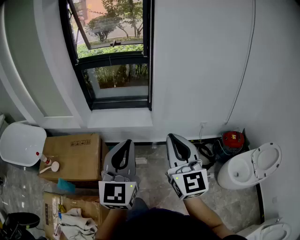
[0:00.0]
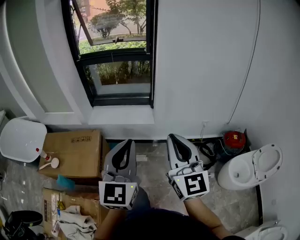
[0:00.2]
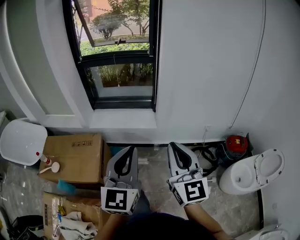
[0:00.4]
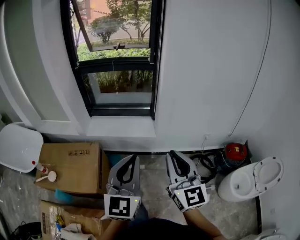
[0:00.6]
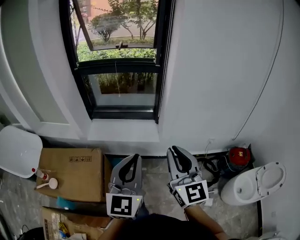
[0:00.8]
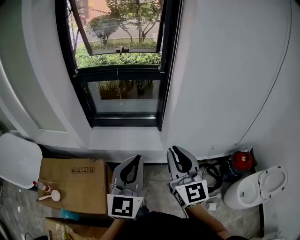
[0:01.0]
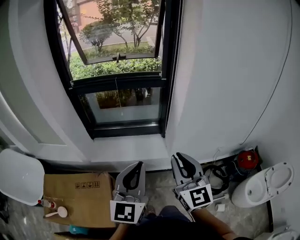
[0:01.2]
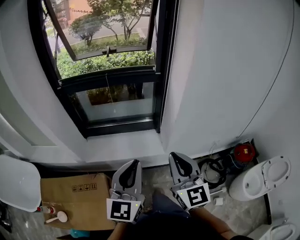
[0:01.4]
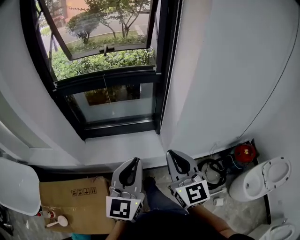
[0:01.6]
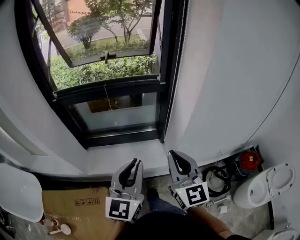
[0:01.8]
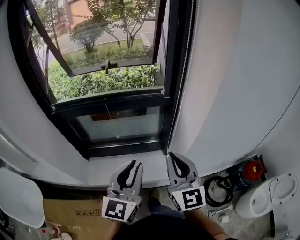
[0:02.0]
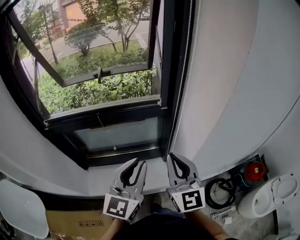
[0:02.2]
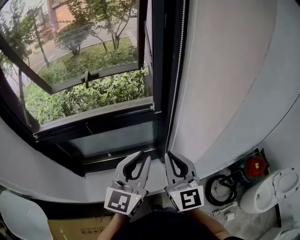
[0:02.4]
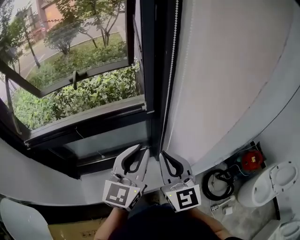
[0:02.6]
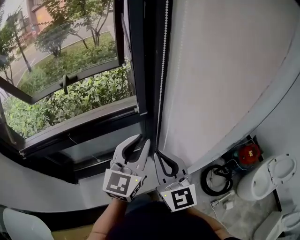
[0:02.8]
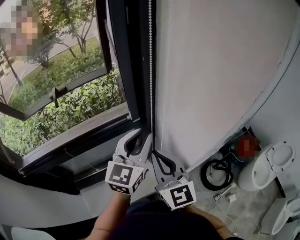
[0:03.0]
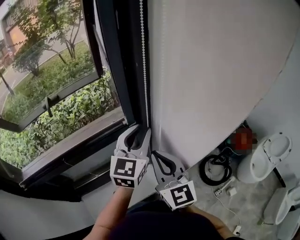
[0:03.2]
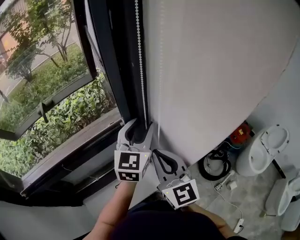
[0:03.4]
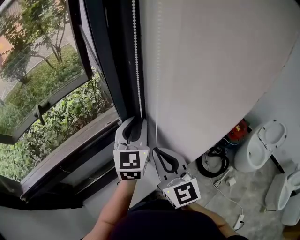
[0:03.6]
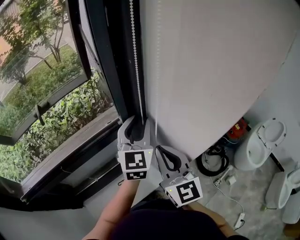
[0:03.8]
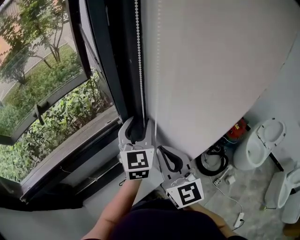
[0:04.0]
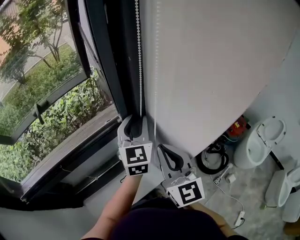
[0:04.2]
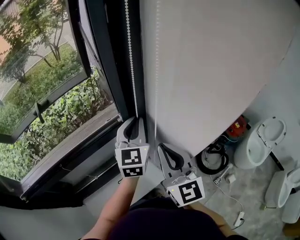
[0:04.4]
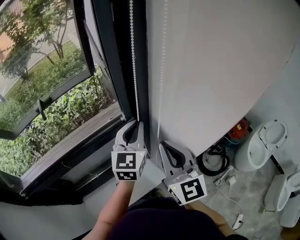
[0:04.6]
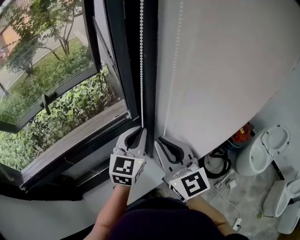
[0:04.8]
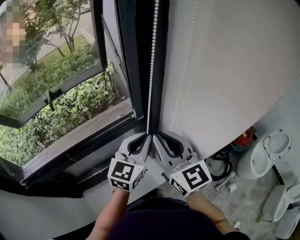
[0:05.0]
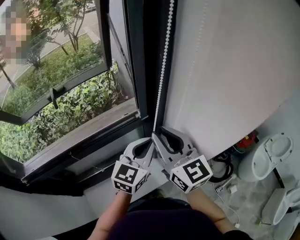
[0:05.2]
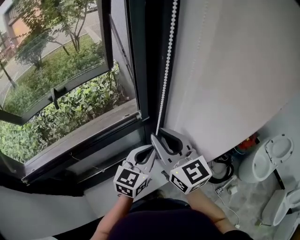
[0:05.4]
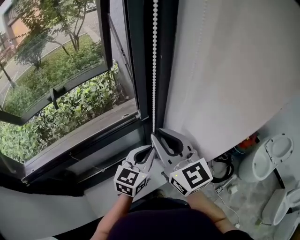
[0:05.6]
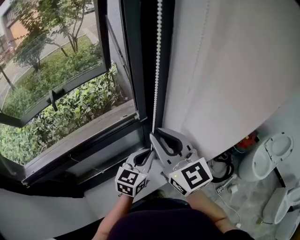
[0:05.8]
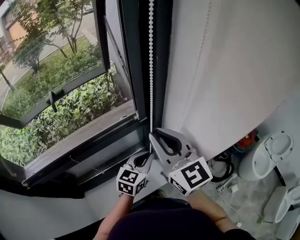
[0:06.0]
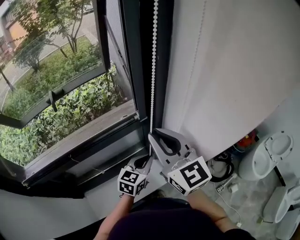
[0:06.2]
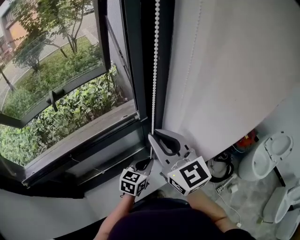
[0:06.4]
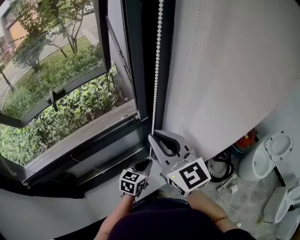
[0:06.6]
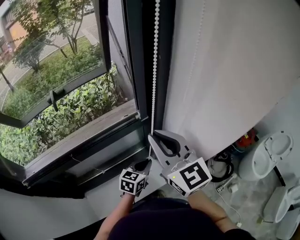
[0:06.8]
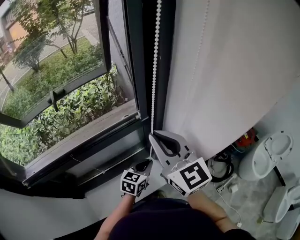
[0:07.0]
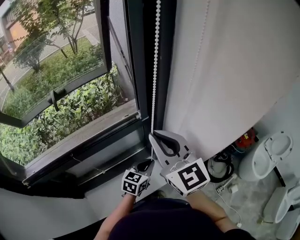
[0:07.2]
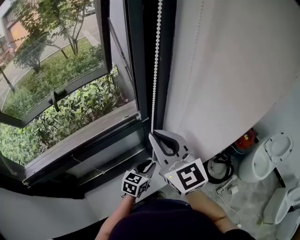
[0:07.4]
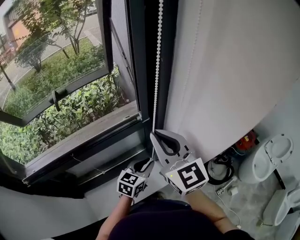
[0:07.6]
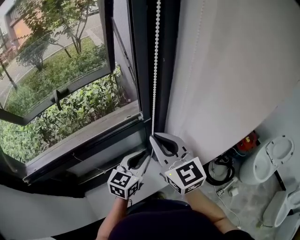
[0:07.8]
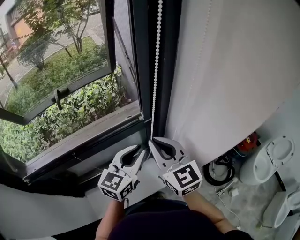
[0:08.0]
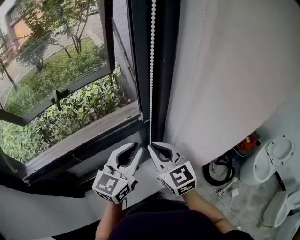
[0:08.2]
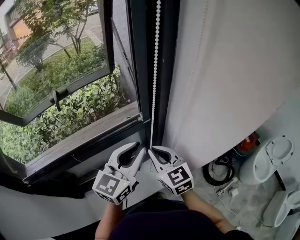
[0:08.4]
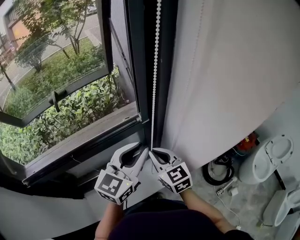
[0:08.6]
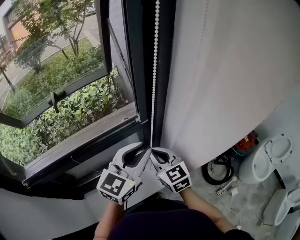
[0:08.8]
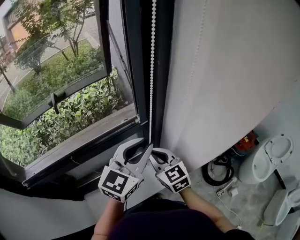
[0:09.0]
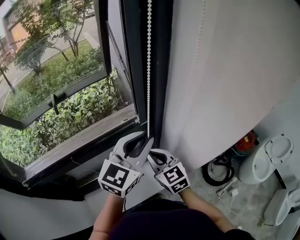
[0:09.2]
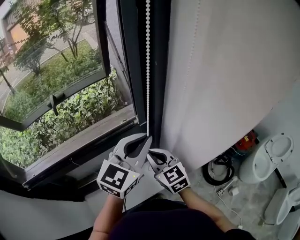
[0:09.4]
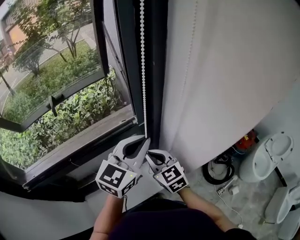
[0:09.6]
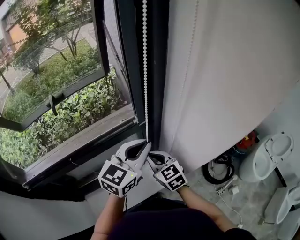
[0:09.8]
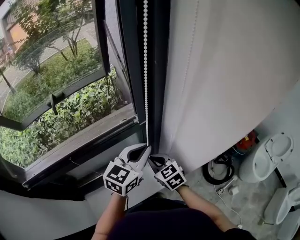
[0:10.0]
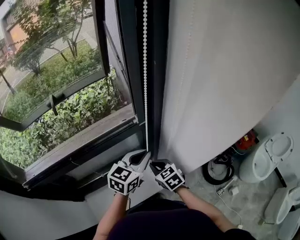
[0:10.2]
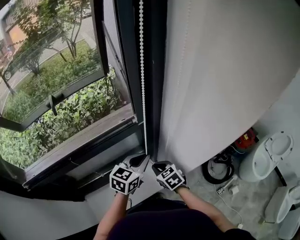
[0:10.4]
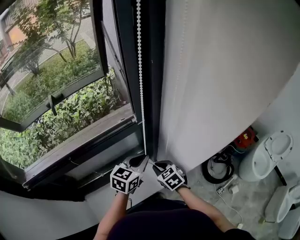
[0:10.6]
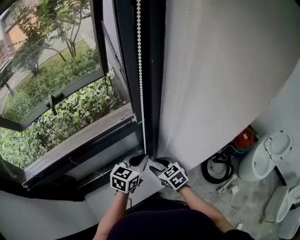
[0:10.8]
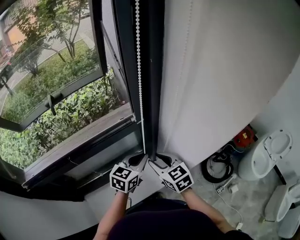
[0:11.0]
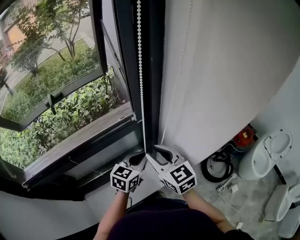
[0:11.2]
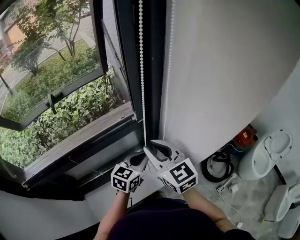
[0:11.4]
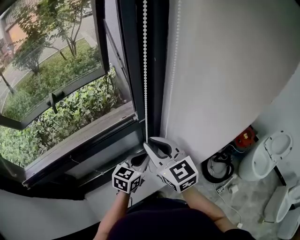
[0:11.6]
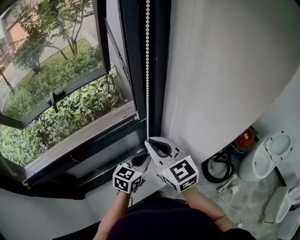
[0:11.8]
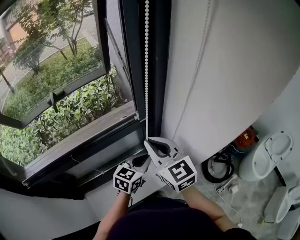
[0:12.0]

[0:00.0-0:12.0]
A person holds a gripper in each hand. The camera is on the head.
0:00.0 to 0:01.6: The pair of grippers is taken forward, approximately 40 cm.
0:01.6 to 0:03.0: The grippers both shift forward by roughly 40 cm. The left gripper rotates some 30 degrees.
0:03.0 to 0:04.4: The left gripper shifts some 5 cm forward, and opens, then closes once more.
0:04.4 to 0:06.0: The right gripper travels to the left by some 5 cm. Meanwhile the left gripper moves downward and backward, roughly 15 cm, and swivels approximately 30 degrees.
0:07.6 to 0:09.0: The left gripper shifts some 20 cm upward, and turns by about 30 degrees, while the right gripper is displaced downward by about 15 cm.
0:09.0 to 0:10.4: The grippers both shift downward by approximately 15 cm. The right gripper turns by some 30 degrees. Meanwhile the left gripper changes its angle by about 20 degrees.
0:10.4 to 0:12.0: The right gripper heads upward, covering some 25 cm, tips its fingers upward by approximately 30 degrees, and opens, then closes once more.

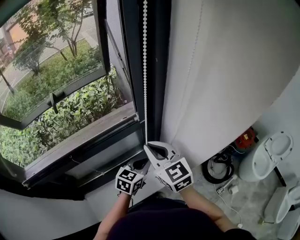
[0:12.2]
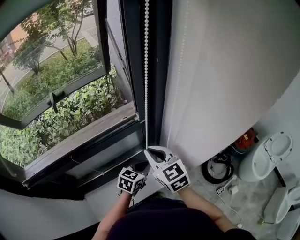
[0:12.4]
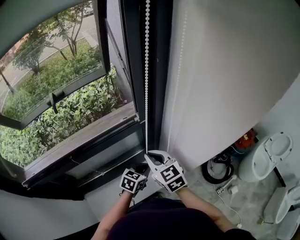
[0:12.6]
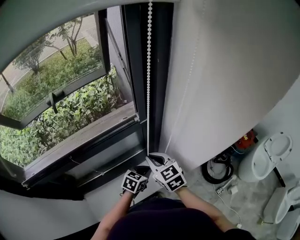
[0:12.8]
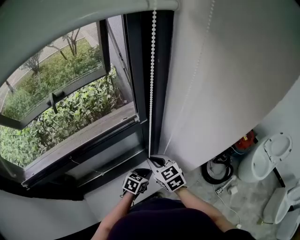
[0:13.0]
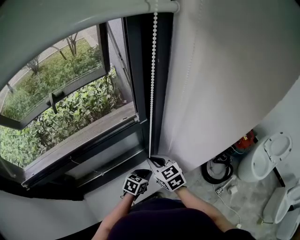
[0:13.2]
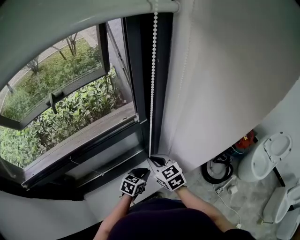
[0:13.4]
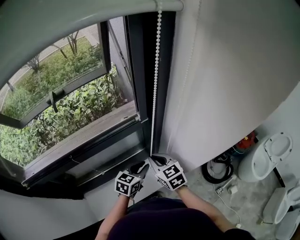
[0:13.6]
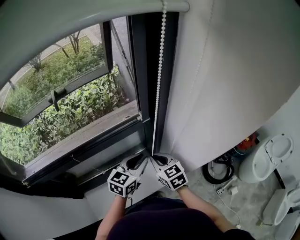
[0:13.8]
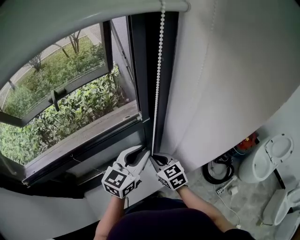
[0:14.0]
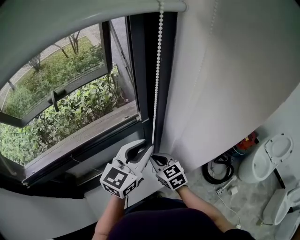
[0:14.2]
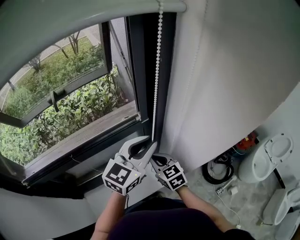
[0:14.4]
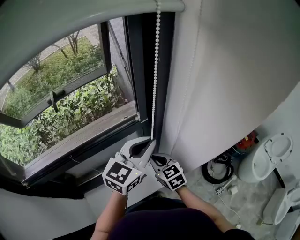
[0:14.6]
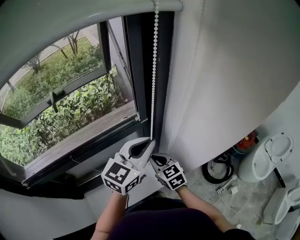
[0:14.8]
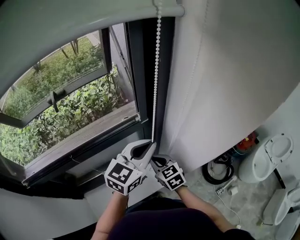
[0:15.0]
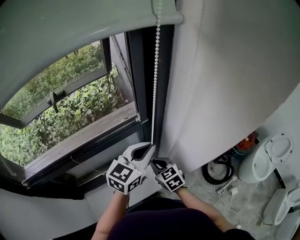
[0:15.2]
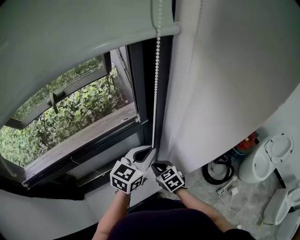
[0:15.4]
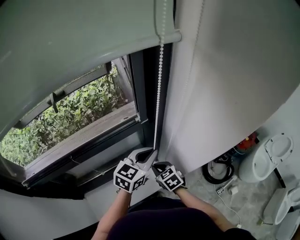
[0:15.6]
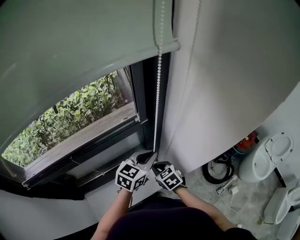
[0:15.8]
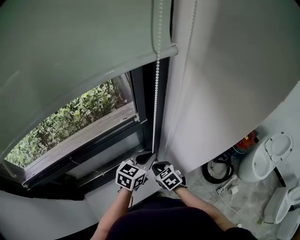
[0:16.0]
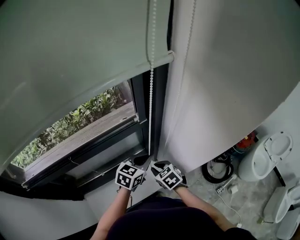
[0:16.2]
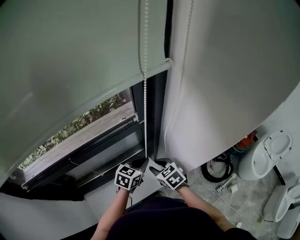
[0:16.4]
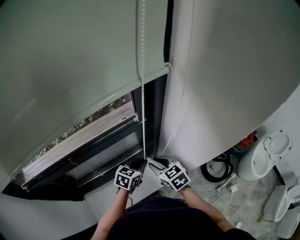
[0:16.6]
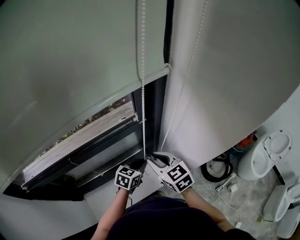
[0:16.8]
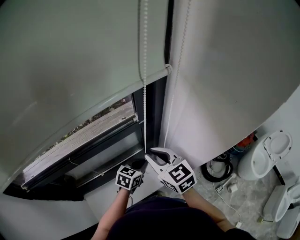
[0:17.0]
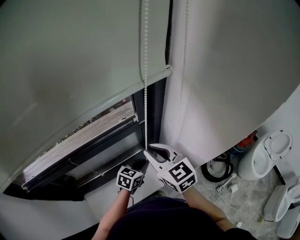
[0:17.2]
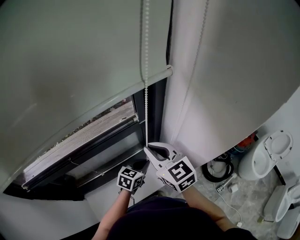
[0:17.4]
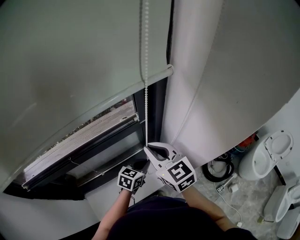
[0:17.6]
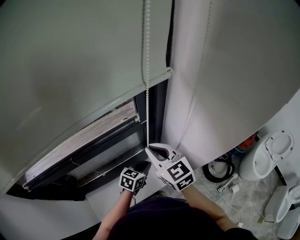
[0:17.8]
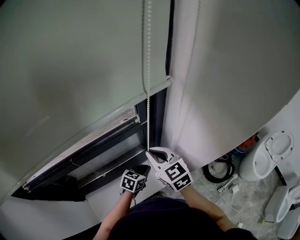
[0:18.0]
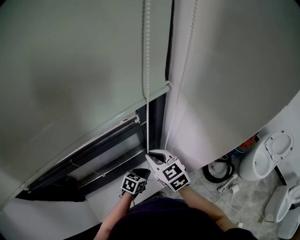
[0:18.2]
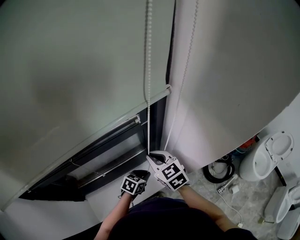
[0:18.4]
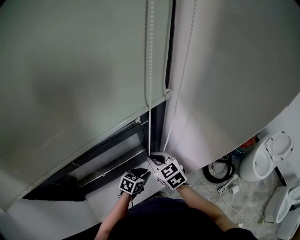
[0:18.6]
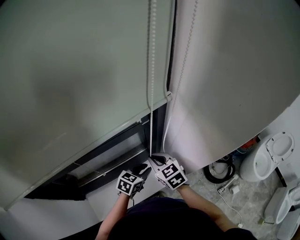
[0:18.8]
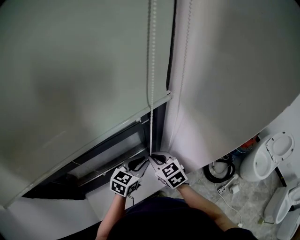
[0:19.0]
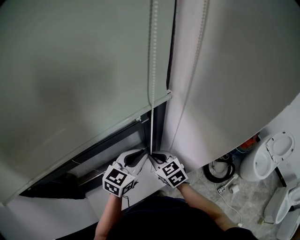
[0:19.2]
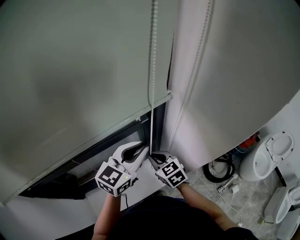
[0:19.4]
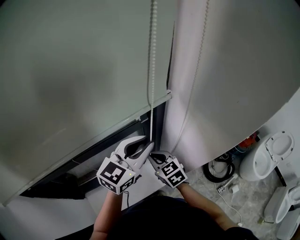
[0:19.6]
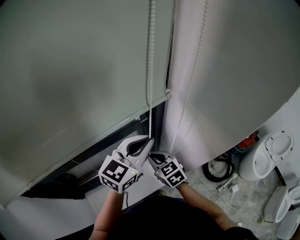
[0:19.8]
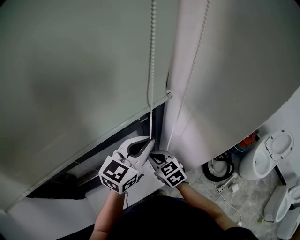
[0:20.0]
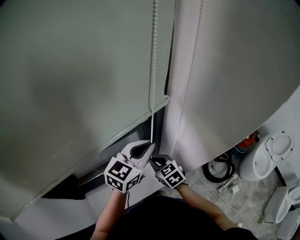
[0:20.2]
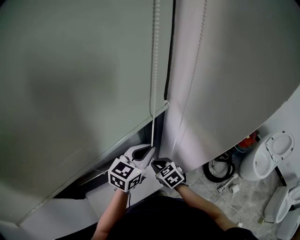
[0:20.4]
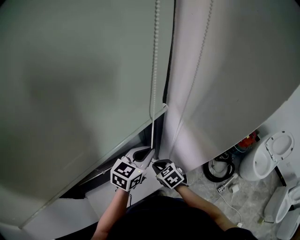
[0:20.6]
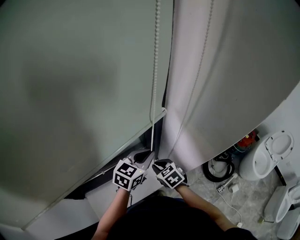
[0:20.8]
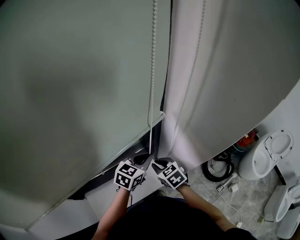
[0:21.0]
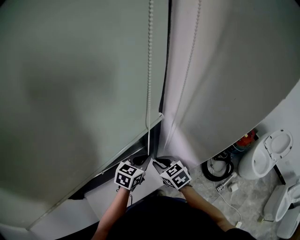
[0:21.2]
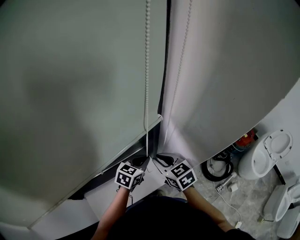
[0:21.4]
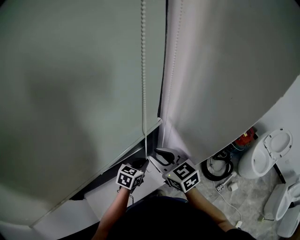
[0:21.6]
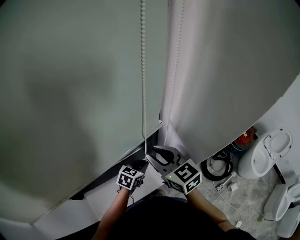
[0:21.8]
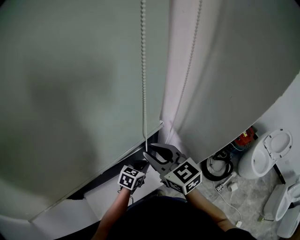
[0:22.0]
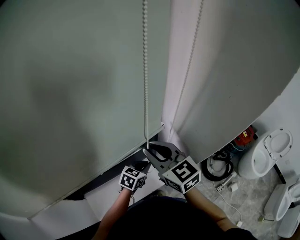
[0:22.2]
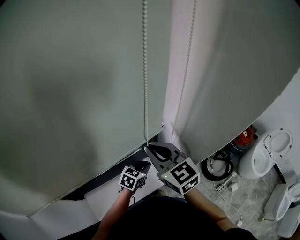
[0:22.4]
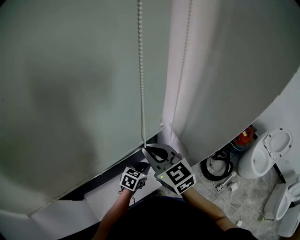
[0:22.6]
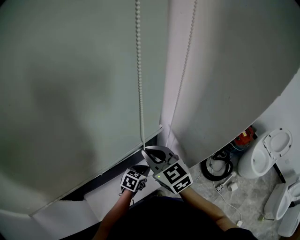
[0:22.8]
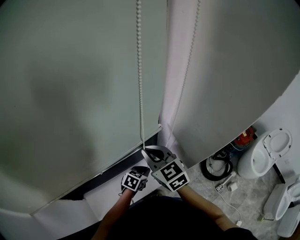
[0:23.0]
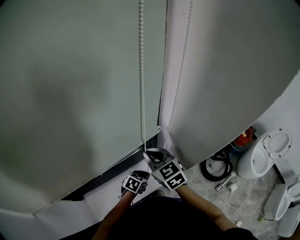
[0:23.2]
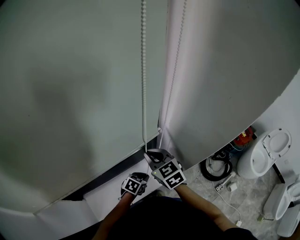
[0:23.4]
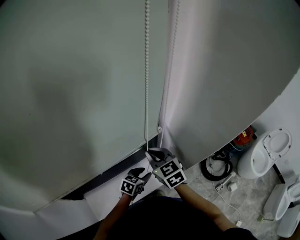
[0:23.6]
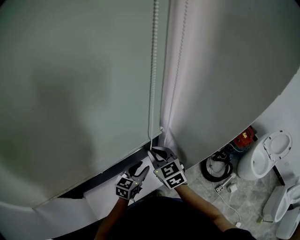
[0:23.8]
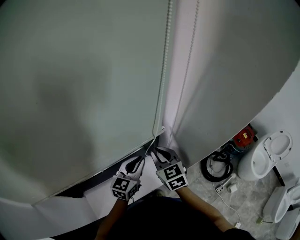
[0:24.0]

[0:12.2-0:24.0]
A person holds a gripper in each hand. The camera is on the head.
0:12.2 to 0:13.6: The right gripper heads downward, covering some 15 cm; the left gripper shifts approximately 5 cm downward.
0:13.6 to 0:15.2: The left gripper goes about 20 cm upward, and turns by roughly 20 degrees.
0:15.2 to 0:16.6: The right gripper moves approximately 5 cm downward and comes back, and opens its fingers. The left gripper heads downward, covering about 20 cm, and rotates some 30 degrees.
0:16.6 to 0:18.2: The right gripper heads upward, covering some 5 cm, and closes its fingers, while the left gripper is displaced downward by some 5 cm.
0:18.2 to 0:19.6: The left gripper is displaced upward by some 30 cm, and points its fingers about 40 degrees further upward; the right gripper shifts some 5 cm downward.
0:19.6 to 0:21.0: The left gripper shifts approximately 15 cm downward, and changes its angle by roughly 20 degrees; the right gripper is displaced downward by some 5 cm.
0:21.0 to 0:22.6: The right gripper heads upward, covering about 20 cm, and rotates some 30 degrees. Meanwhile the left gripper shifts roughly 10 cm downward.
0:22.6 to 0:24.0: The left gripper is displaced upward by about 10 cm, rotates approximately 30 degrees, and opens, then closes again. The right gripper goes roughly 10 cm downward.
